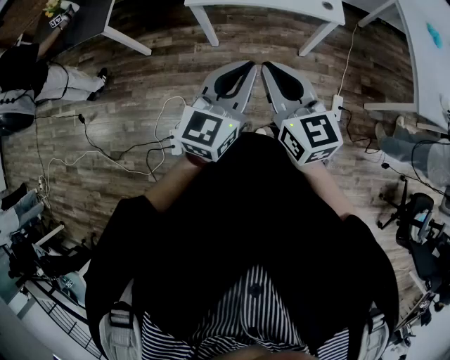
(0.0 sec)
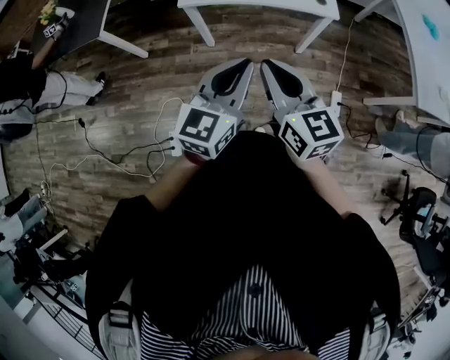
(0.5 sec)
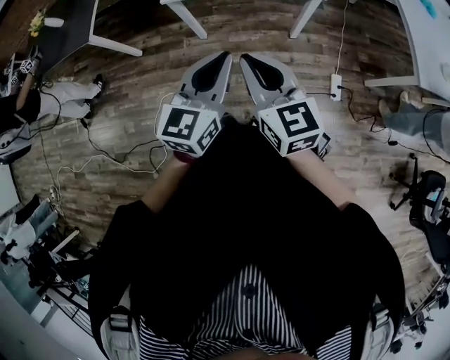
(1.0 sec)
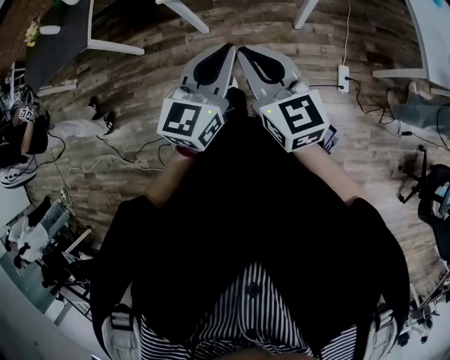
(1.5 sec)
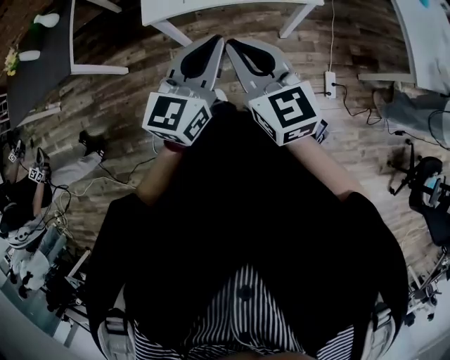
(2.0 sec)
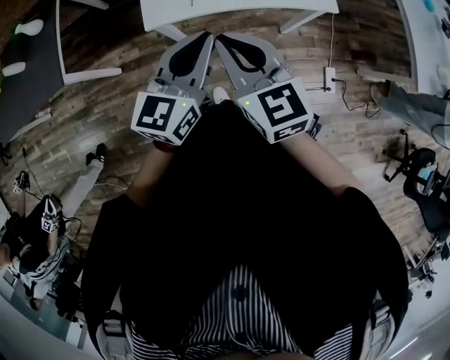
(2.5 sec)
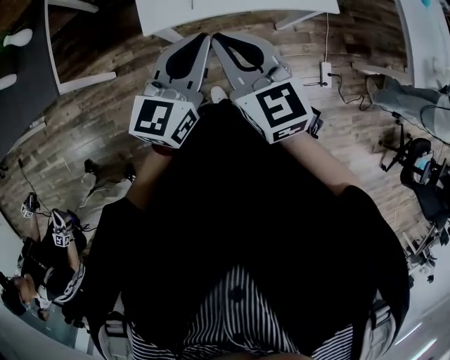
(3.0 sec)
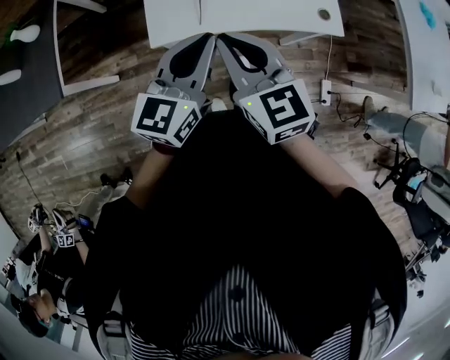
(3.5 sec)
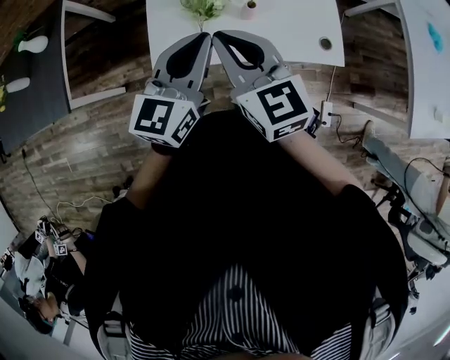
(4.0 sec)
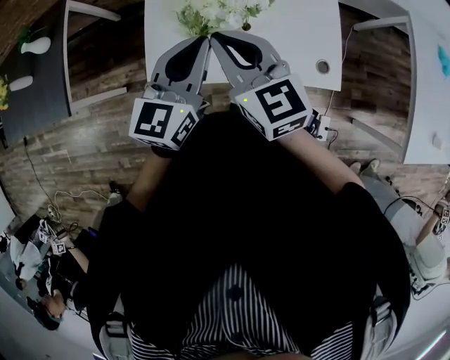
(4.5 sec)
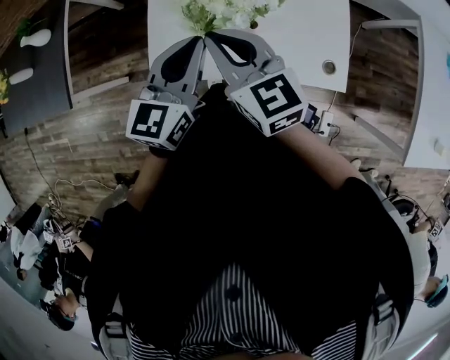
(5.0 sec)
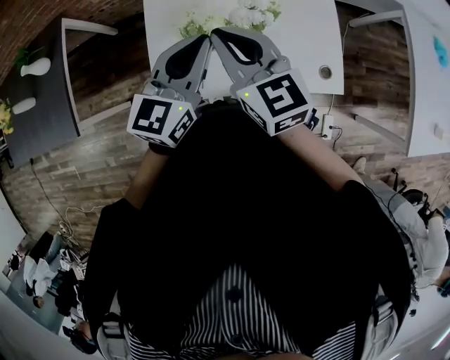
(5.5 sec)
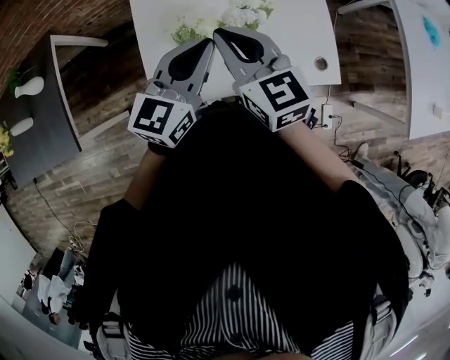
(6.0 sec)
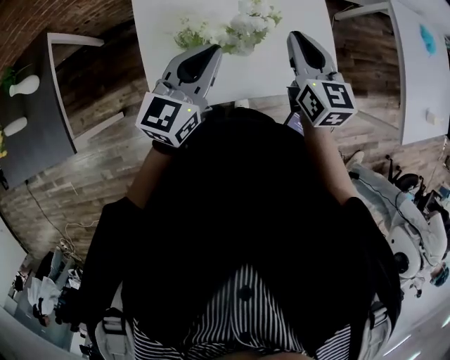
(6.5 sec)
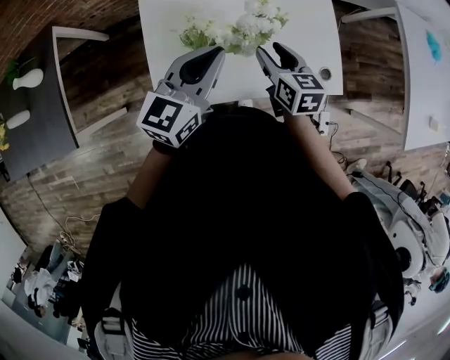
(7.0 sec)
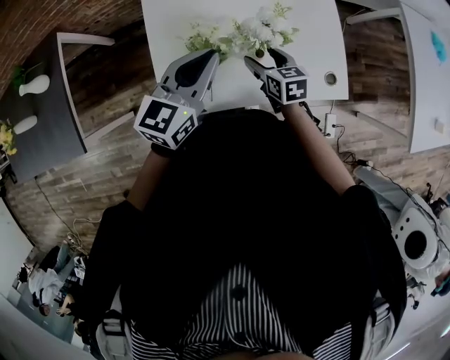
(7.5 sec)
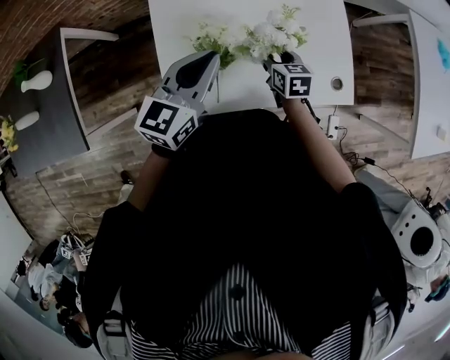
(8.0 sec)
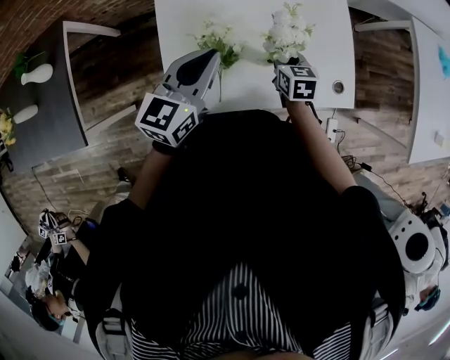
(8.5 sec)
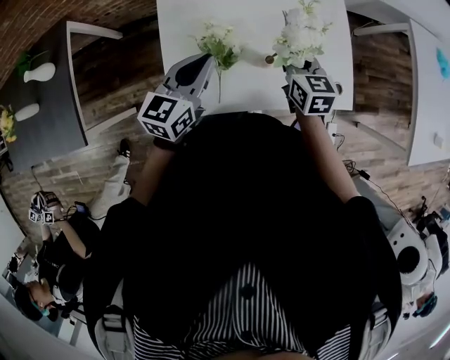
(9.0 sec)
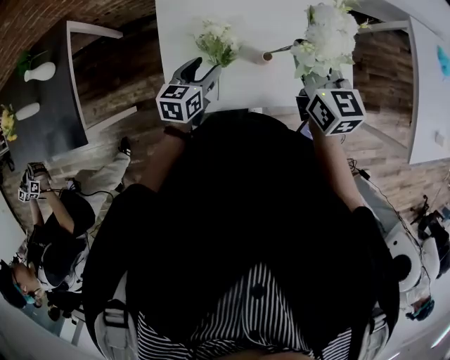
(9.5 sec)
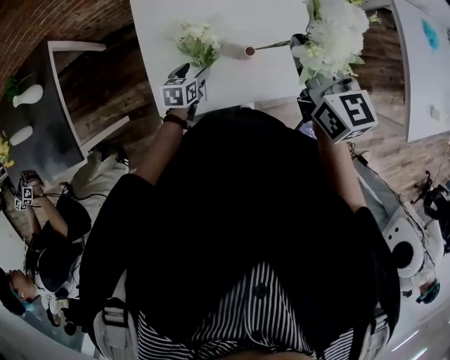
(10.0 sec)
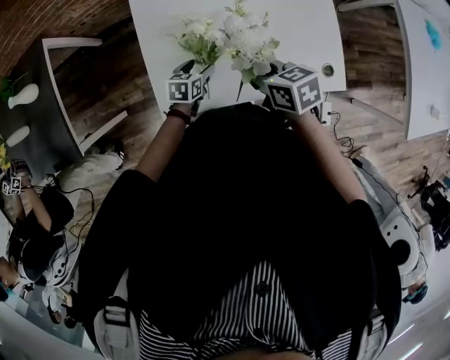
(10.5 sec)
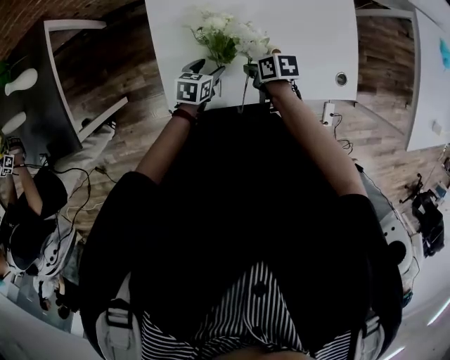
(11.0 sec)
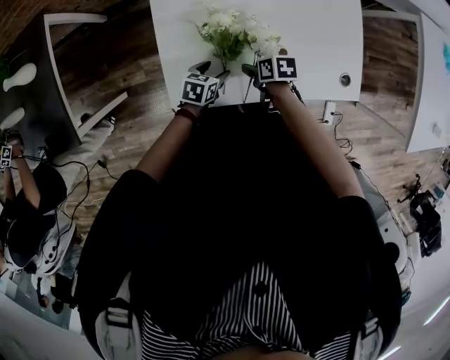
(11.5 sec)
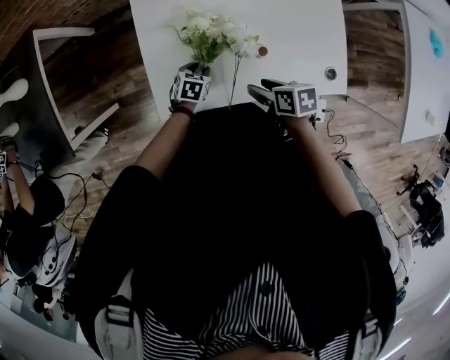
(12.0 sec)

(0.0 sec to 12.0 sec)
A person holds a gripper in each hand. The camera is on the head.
0.0 sec - 2.0 sec: The grippers both shift forward by approximately 15 cm.
2.0 sec - 4.0 sec: Both grippers move forward, approximately 30 cm.
4.0 sec - 6.0 sec: Both grippers travel together forward, about 15 cm.
6.0 sec - 8.0 sec: The right gripper heads downward, covering about 25 cm, swivels approximately 30 degrees, and opens. The left gripper ends up some 5 cm from where it was.
8.0 sec - 10.0 sec: The right gripper shifts about 25 cm upward, turns by roughly 30 degrees, and closes its fingers. Meanwhile the left gripper is displaced downward by roughly 30 cm, angles its fingers downward, by roughly 30 degrees, and opens up.
10.0 sec - 12.0 sec: The left gripper moves downward, approximately 10 cm, and closes its fingers; the right gripper goes some 30 cm downward, points its fingers roughly 40 degrees further downward, and opens.

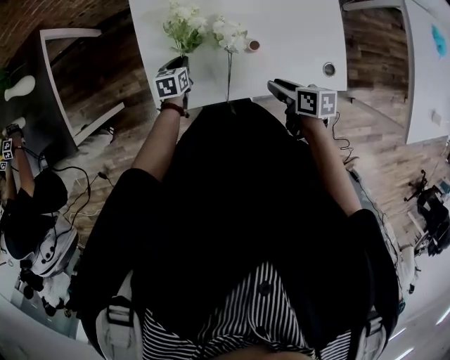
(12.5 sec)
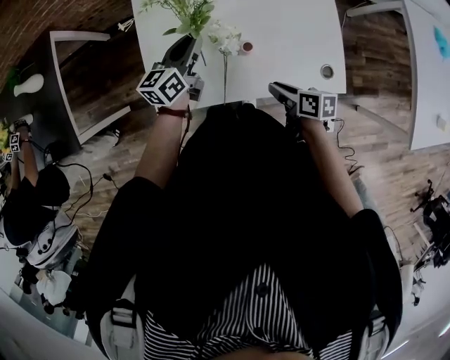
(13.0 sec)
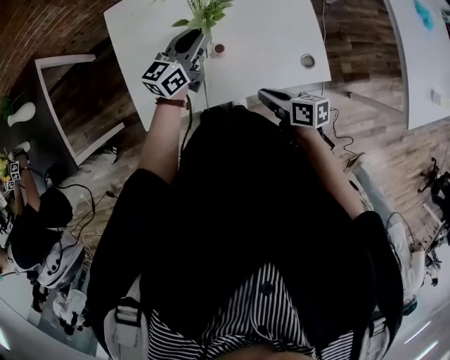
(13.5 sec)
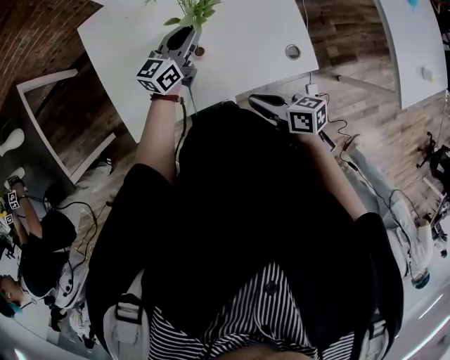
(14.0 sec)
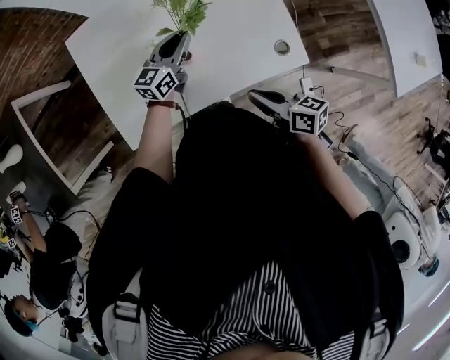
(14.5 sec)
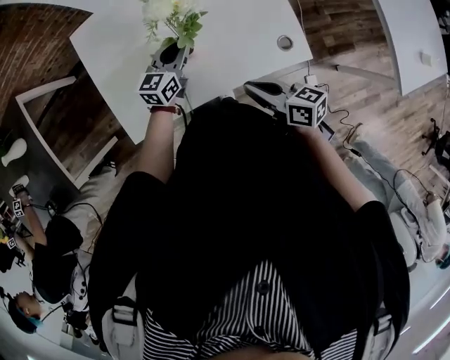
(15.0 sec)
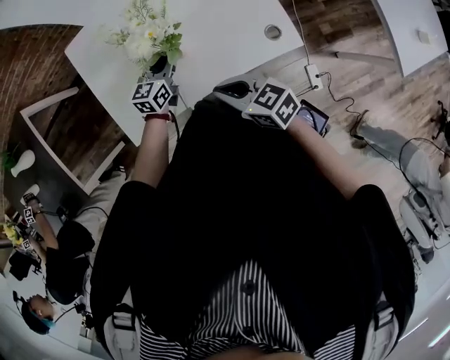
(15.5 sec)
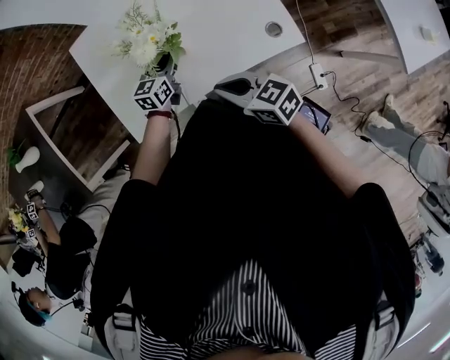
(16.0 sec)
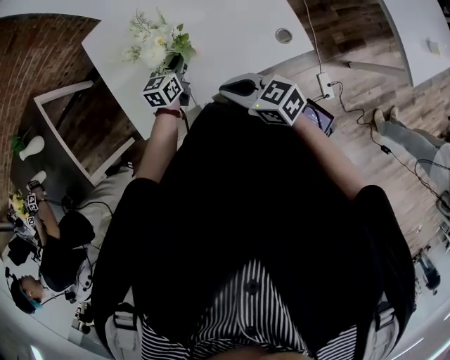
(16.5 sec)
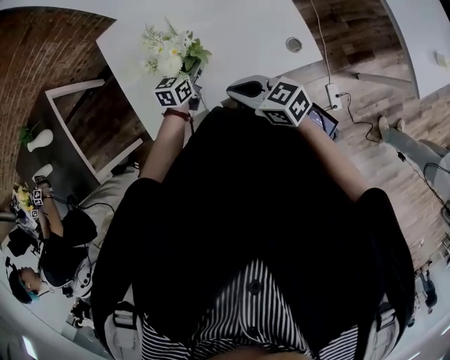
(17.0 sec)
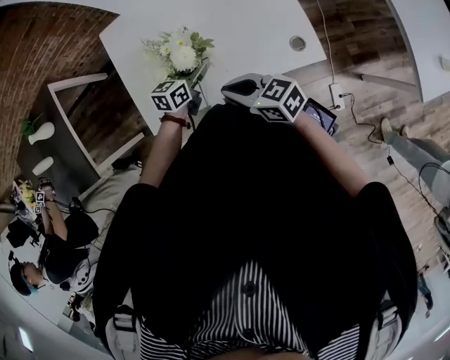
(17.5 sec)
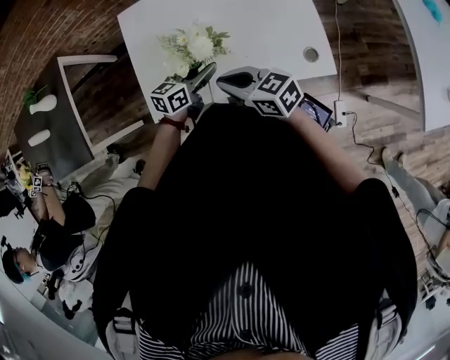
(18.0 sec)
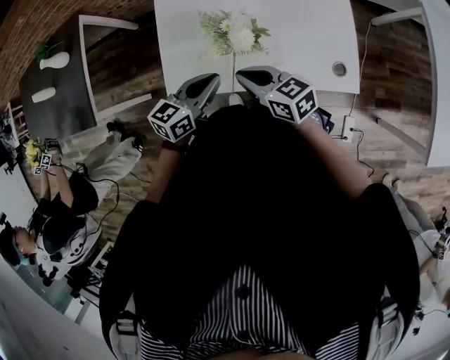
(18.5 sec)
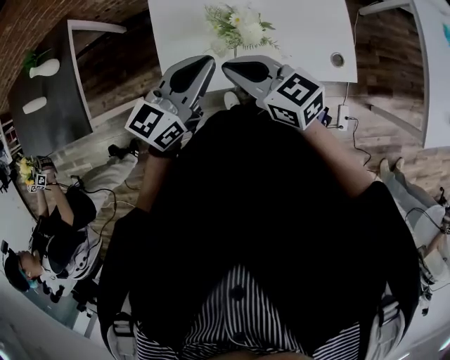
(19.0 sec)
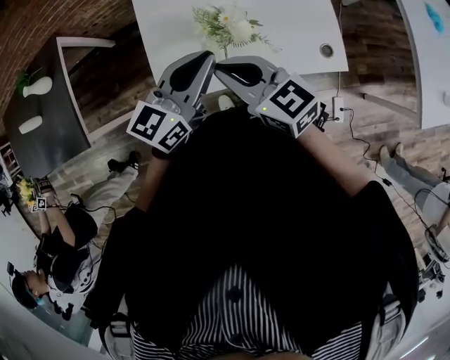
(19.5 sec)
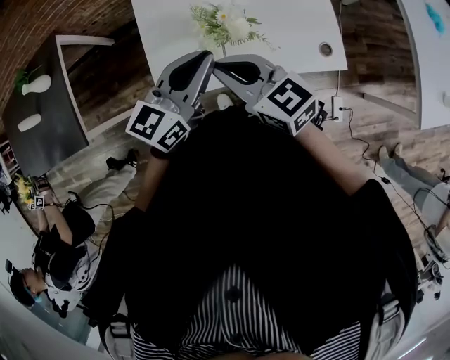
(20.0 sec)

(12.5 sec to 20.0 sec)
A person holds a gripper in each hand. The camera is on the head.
12.5 sec - 14.5 sec: The left gripper travels to the right and upward by about 30 cm, and angles its fingers upward, by roughly 50 degrees, while the right gripper travels to the right, upward and backward by roughly 10 cm, changes its angle by roughly 20 degrees, and closes.
14.5 sec - 16.5 sec: The left gripper heads backward, covering approximately 5 cm; the right gripper goes about 10 cm to the left, and rotates about 30 degrees.
16.5 sec - 18.0 sec: The left gripper goes roughly 5 cm backward, and opens up, while the right gripper ends up roughly 5 cm from where it was.
18.0 sec - 20.0 sec: The right gripper travels upward, to the left and forward by some 15 cm, while the left gripper goes some 20 cm upward, rotates approximately 20 degrees, and closes up.

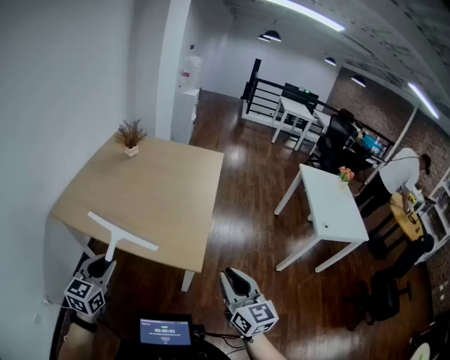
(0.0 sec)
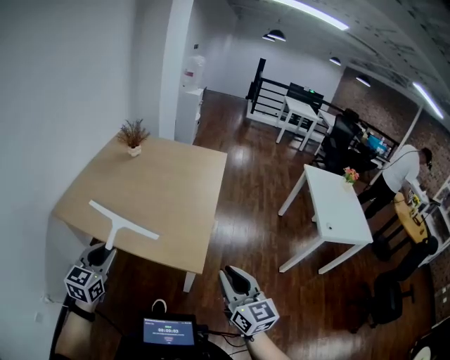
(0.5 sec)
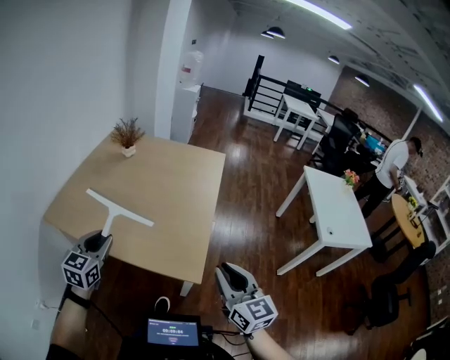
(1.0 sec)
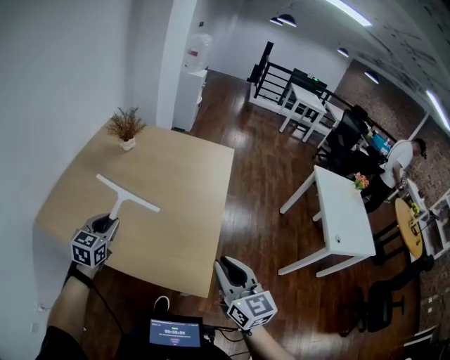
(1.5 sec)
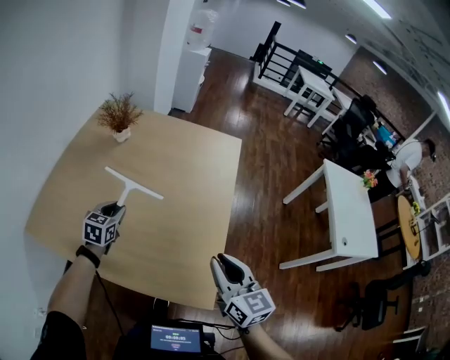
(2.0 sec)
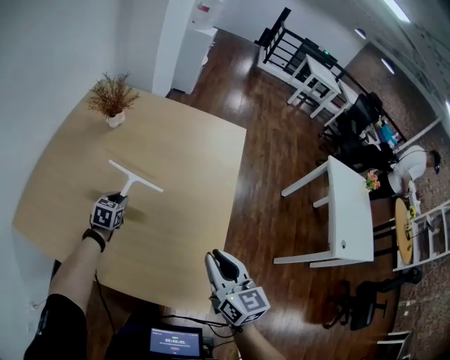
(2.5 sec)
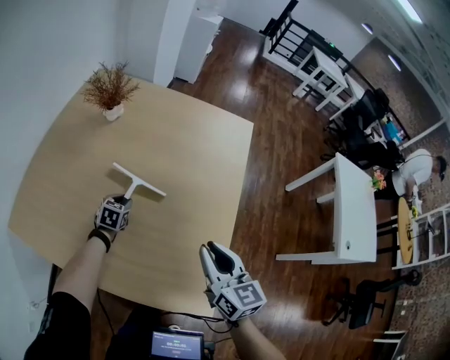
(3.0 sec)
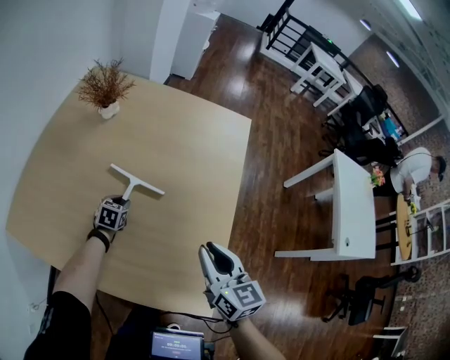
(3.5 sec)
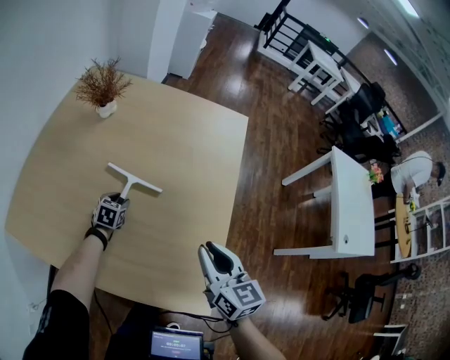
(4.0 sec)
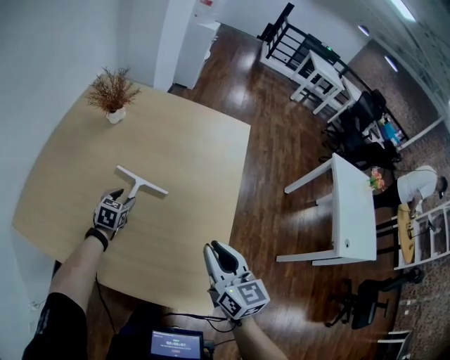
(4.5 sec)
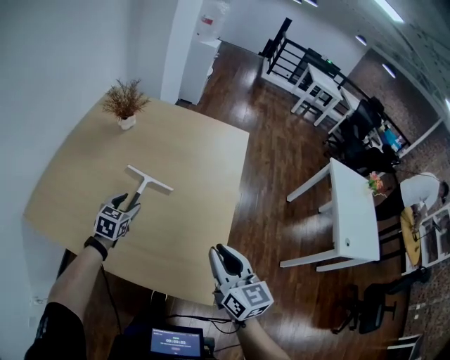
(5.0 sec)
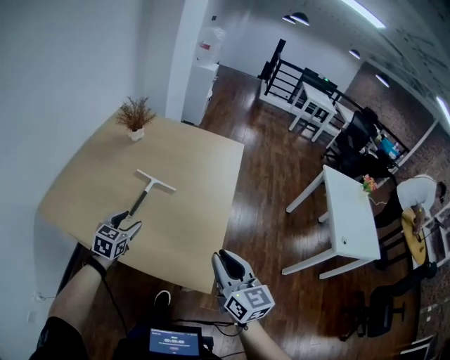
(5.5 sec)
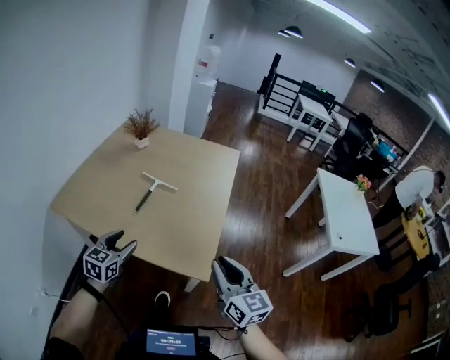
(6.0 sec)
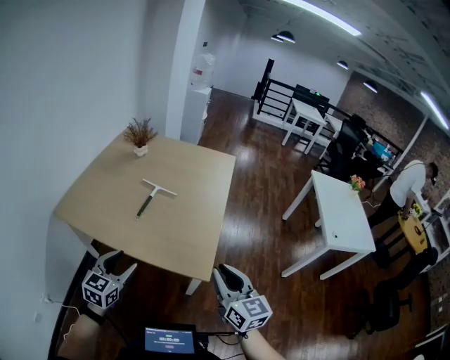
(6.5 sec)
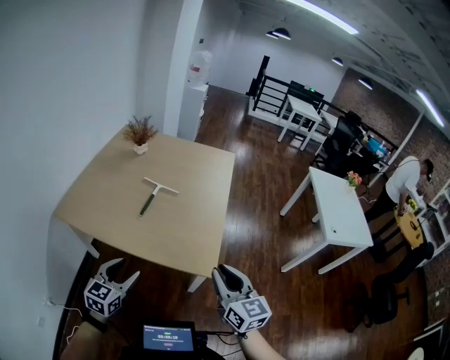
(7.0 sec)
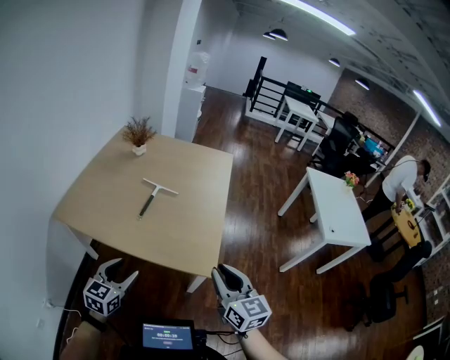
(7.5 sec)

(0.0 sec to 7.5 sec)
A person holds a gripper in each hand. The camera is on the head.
0.0 sec - 2.0 sec: The two grippers go about 40 cm forward.
2.0 sec - 4.0 sec: The left gripper moves downward and forward, approximately 20 cm. The right gripper shifts roughly 15 cm forward and downward.
4.0 sec - 5.5 sec: The two grippers go approximately 30 cm backward and upward. The left gripper rotates some 20 degrees.
5.5 sec - 7.5 sec: The right gripper moves backward, some 15 cm. The left gripper travels backward by some 25 cm.
